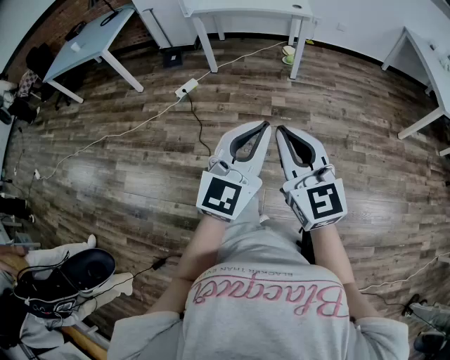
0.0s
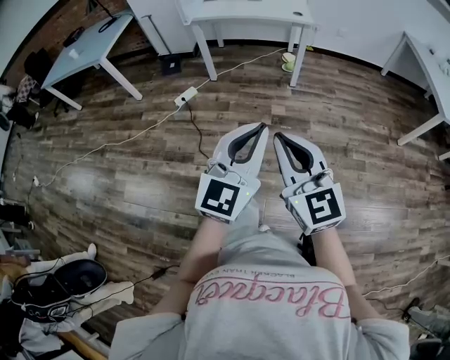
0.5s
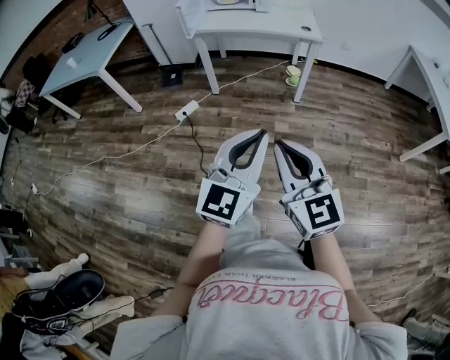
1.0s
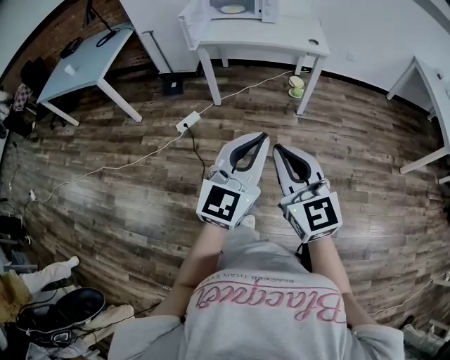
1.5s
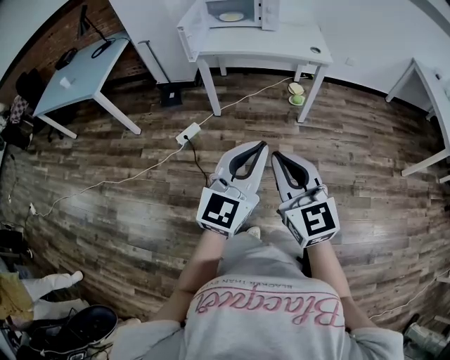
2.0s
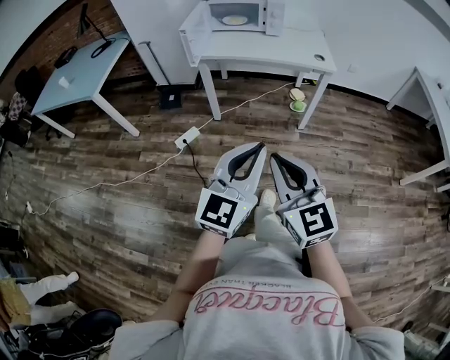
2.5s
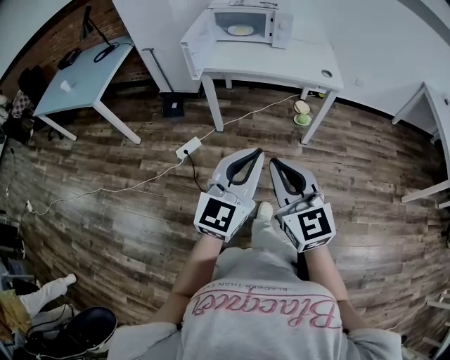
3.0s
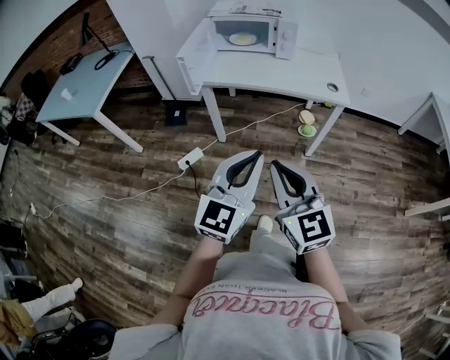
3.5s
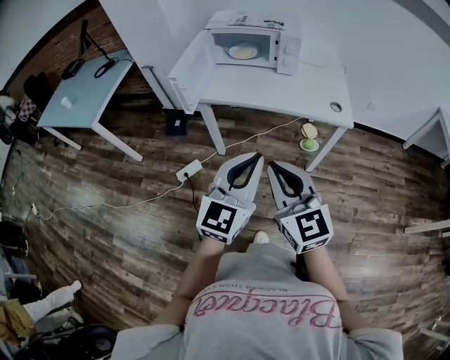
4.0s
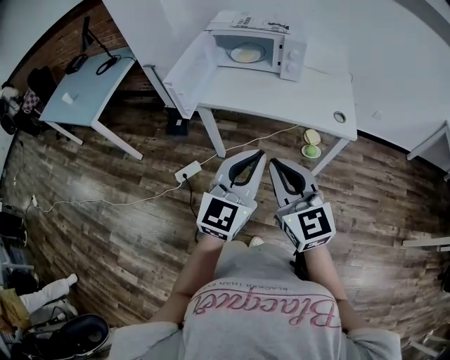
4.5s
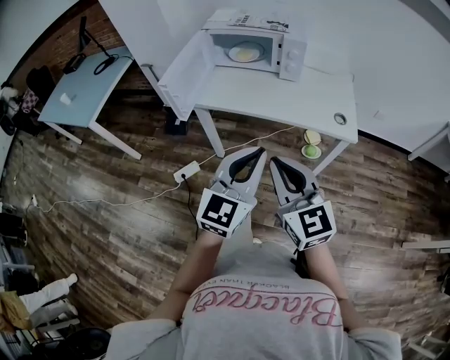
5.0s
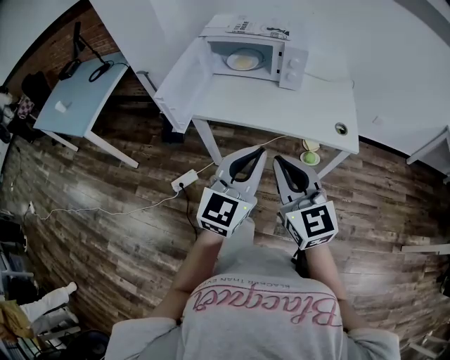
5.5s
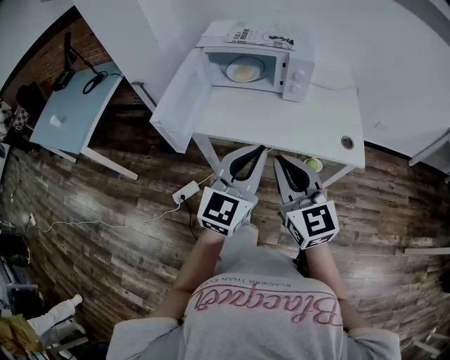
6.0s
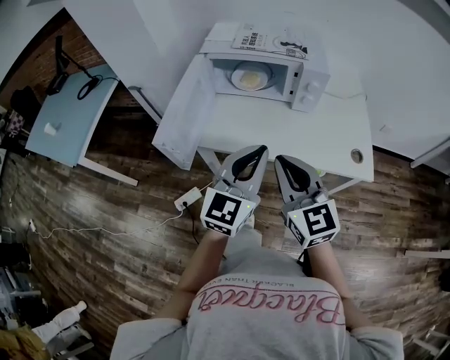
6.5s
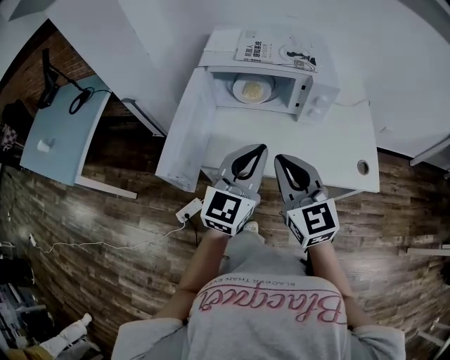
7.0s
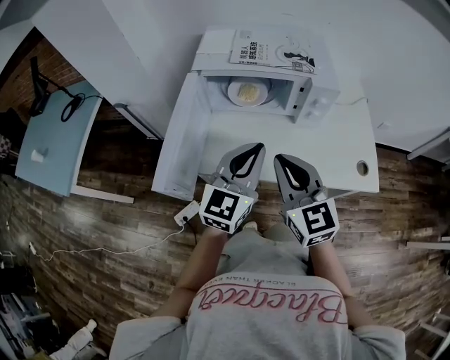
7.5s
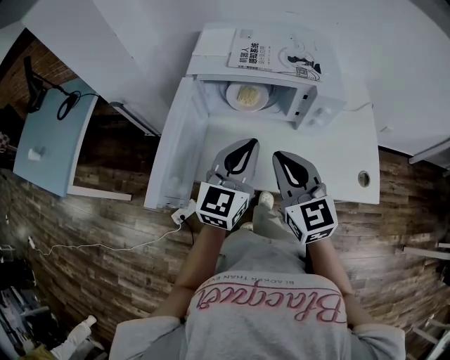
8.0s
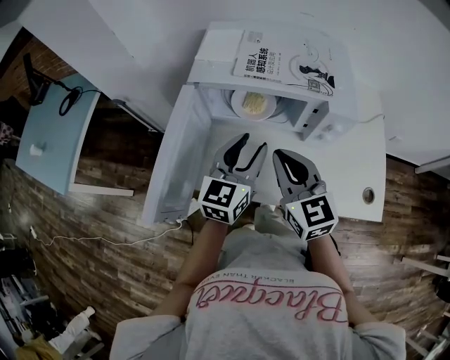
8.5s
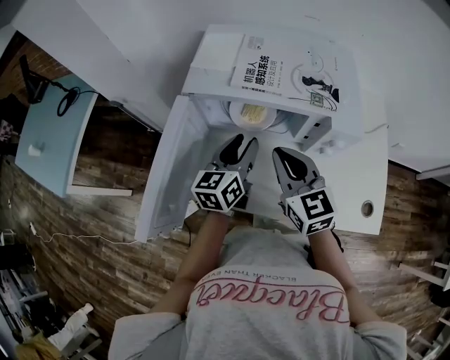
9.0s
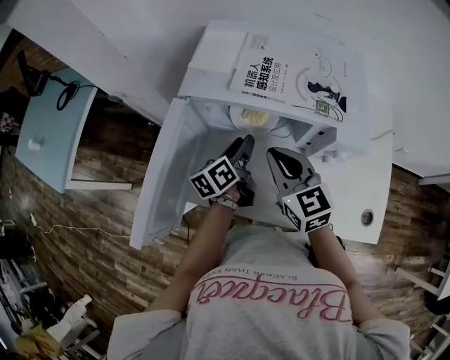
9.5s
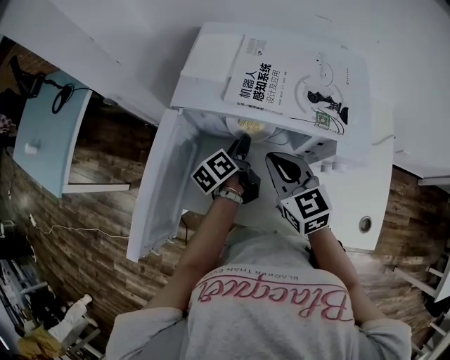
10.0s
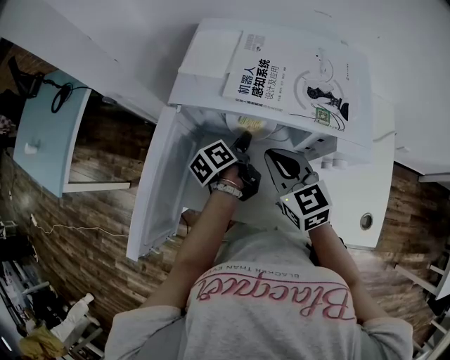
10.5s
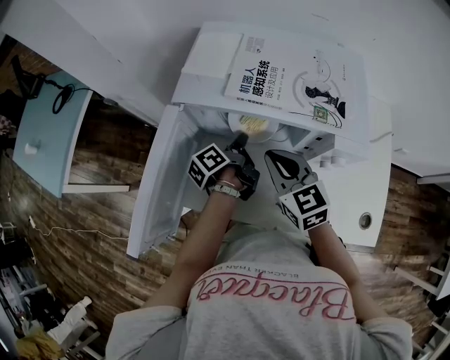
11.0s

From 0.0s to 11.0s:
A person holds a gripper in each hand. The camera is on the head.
From 0.0s to 2.0s: The two grippers go some 30 cm forward and to the left.
From 2.0s to 3.5s: The grippers both shift forward by about 20 cm.
From 3.5s to 5.5s: The two grippers go roughly 25 cm forward.
From 5.5s to 7.5s: The two grippers go about 25 cm forward.
From 7.5s to 9.0s: The left gripper is displaced forward and downward by some 20 cm, turns by approximately 30 degrees, and opens up. Meanwhile the right gripper shifts about 15 cm forward.
From 9.0s to 11.0s: The left gripper moves downward and forward, approximately 10 cm, rotates around the line of its fingers by about 60 degrees, counterclockwise from behind, and closes. The right gripper changes place by some 5 cm.

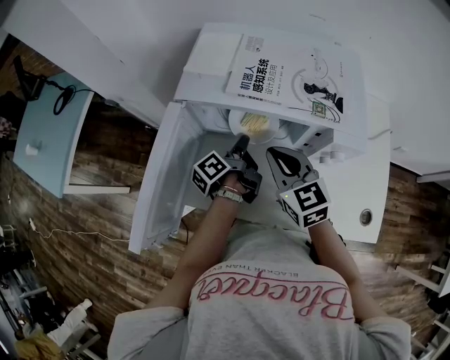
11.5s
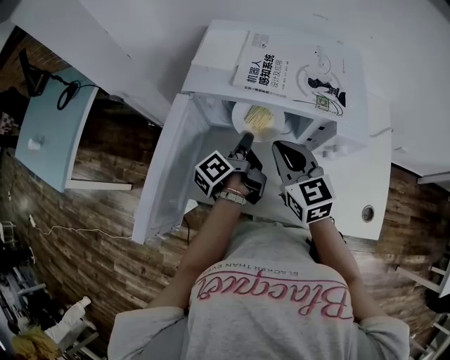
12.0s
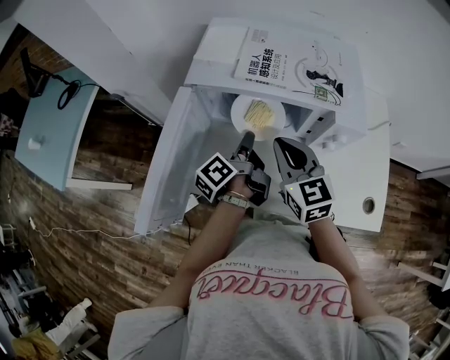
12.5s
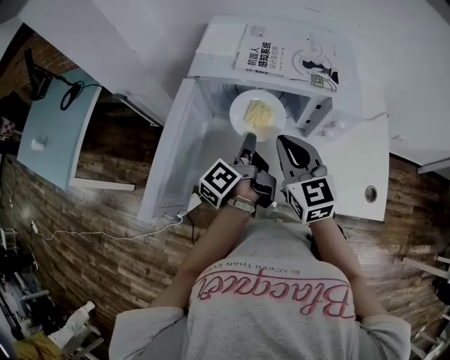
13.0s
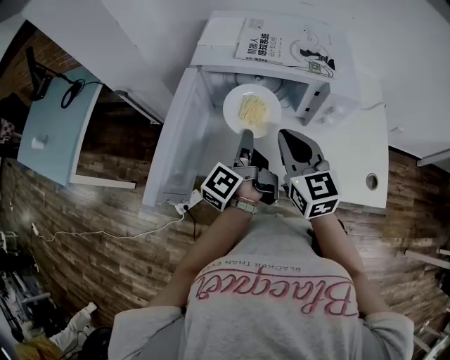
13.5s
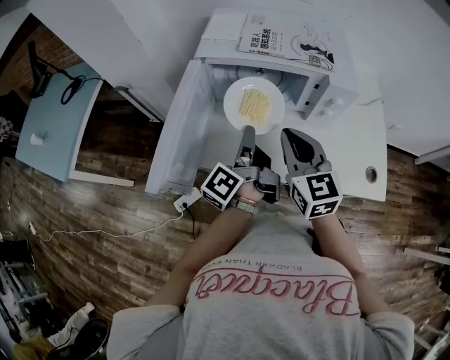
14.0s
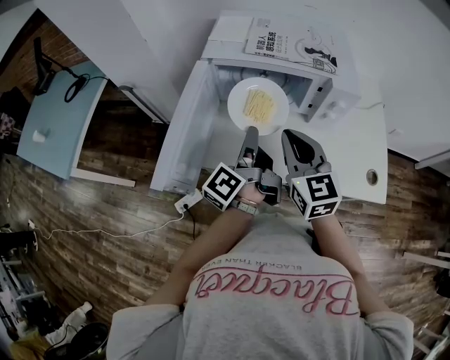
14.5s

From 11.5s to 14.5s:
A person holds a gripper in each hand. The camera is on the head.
From 11.5s to 13.0s: The right gripper moves backward, approximately 5 cm. Meanwhile the left gripper heads backward and upward, covering about 10 cm.
From 13.0s to 14.5s: Both grippers move backward, some 5 cm.

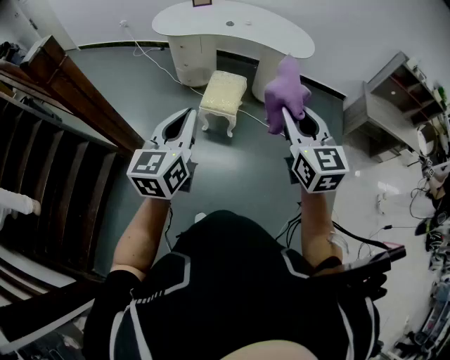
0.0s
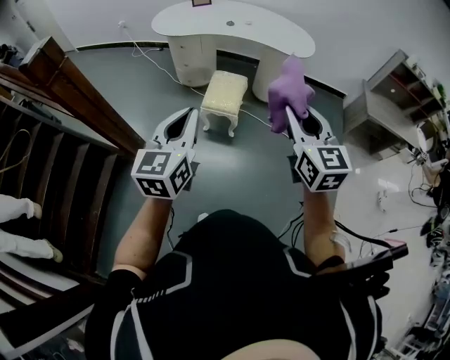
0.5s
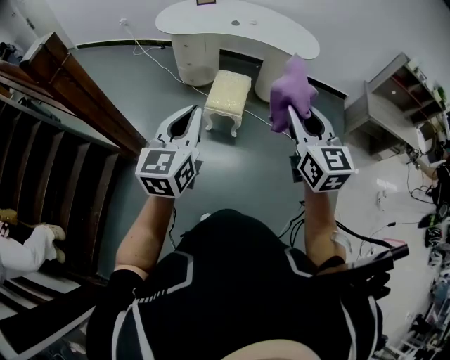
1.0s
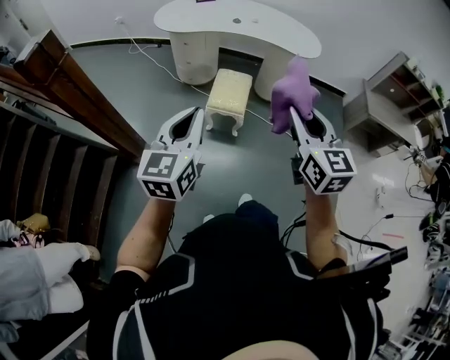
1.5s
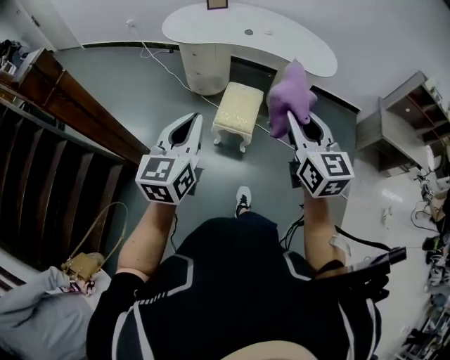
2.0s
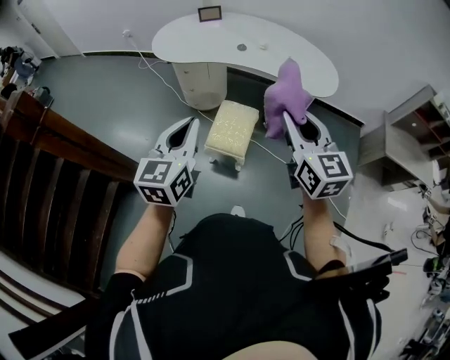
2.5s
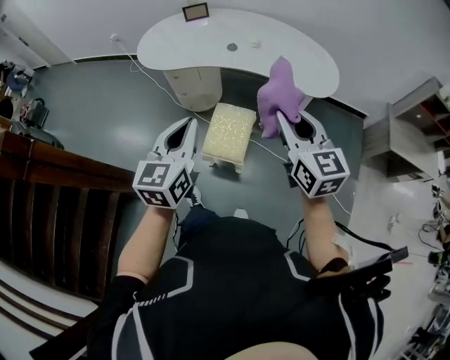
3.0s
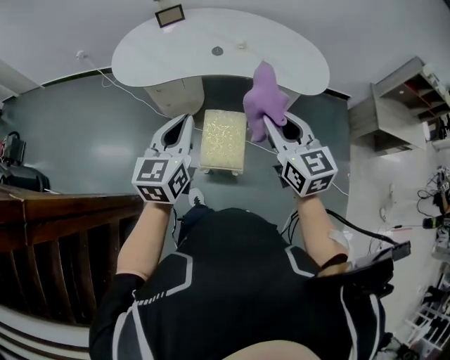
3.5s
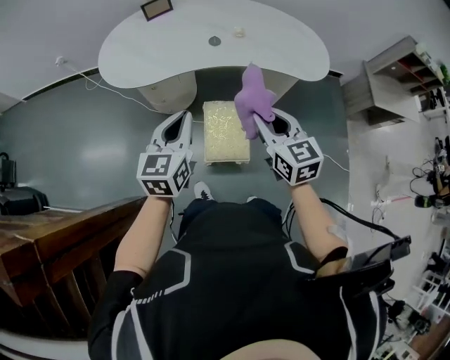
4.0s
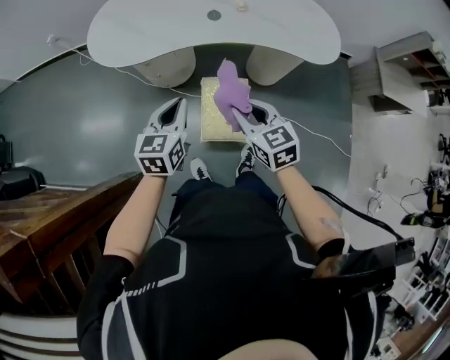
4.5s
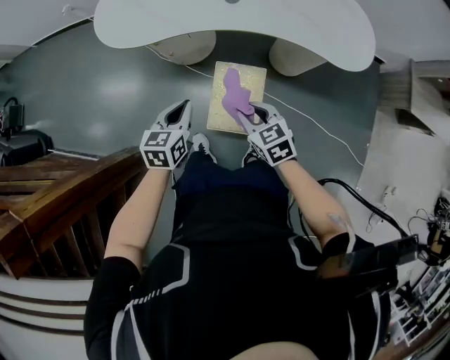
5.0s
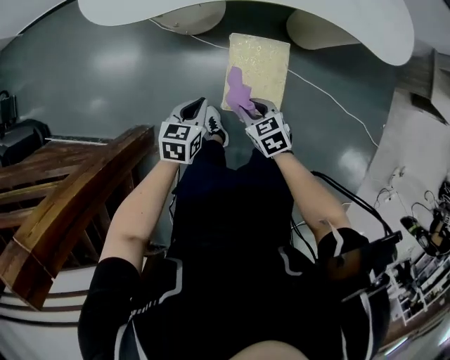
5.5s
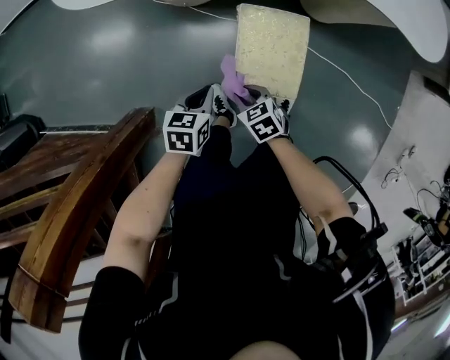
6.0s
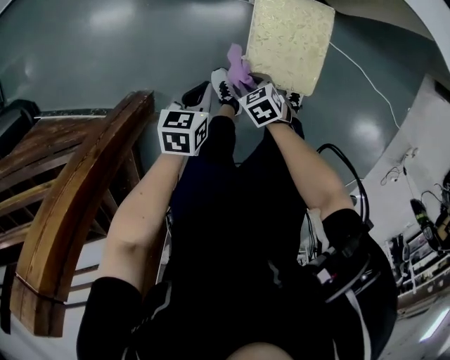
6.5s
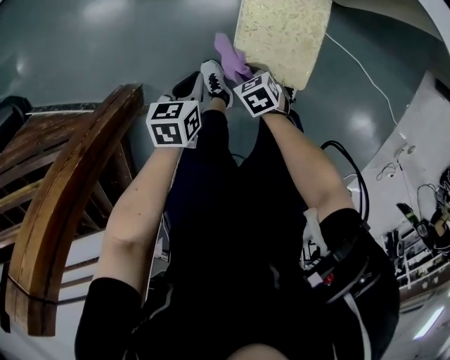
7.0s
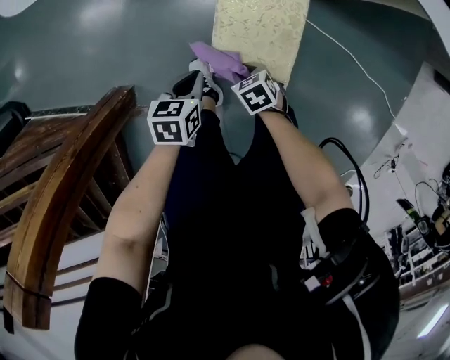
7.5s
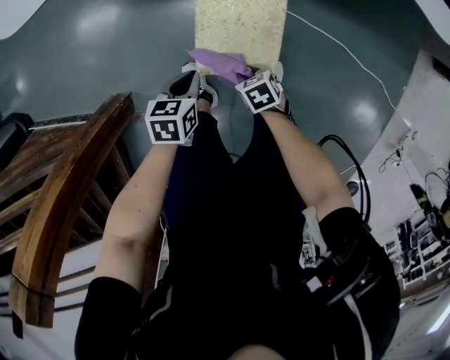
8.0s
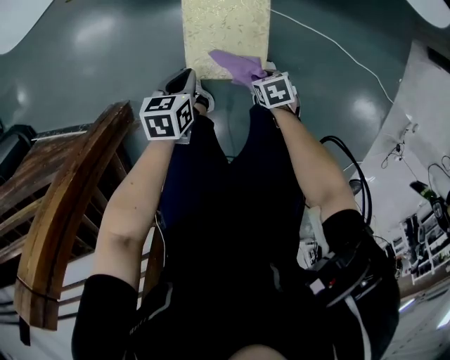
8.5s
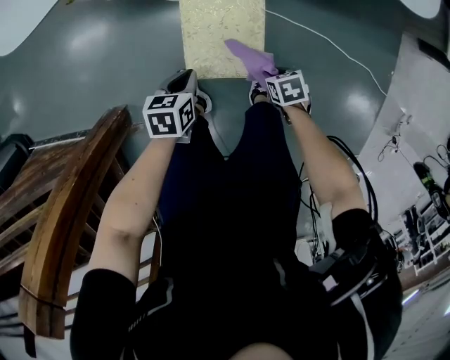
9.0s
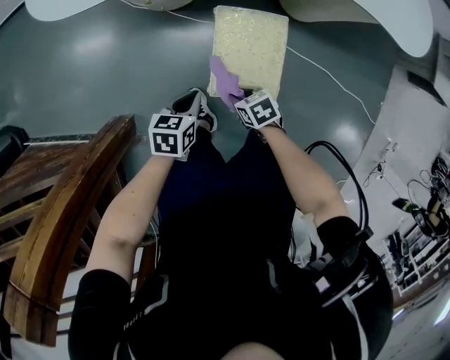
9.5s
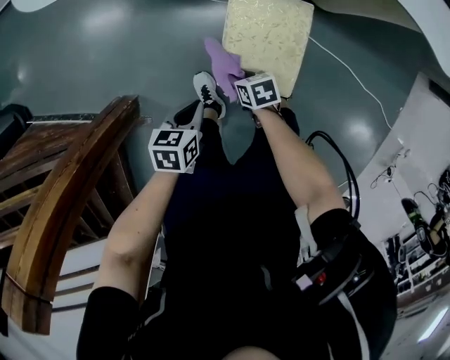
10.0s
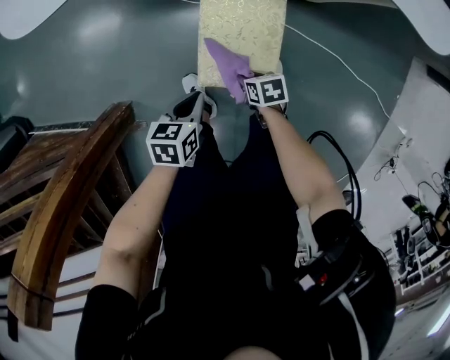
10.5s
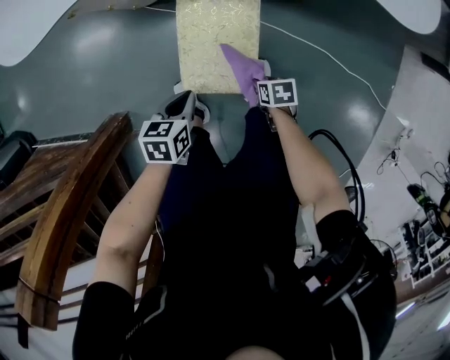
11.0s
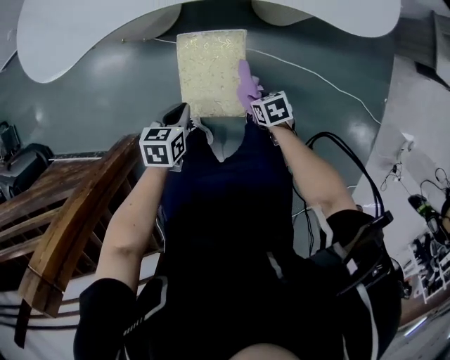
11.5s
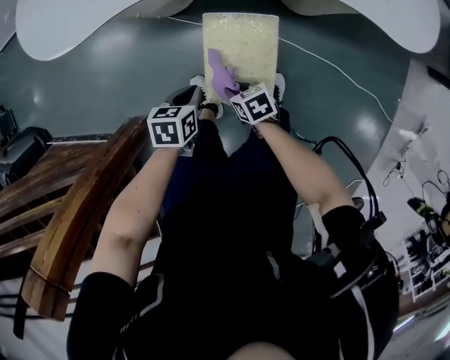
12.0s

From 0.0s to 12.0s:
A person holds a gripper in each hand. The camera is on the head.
From 0.0s to 2.0s: The two grippers go about 15 cm forward and to the left.
From 2.0s to 4.0s: The two grippers go approximately 40 cm forward.
From 4.0s to 6.0s: The right gripper goes some 50 cm downward and to the left, and angles its fingers downward, by about 40 degrees. Meanwhile the left gripper is displaced downward by approximately 40 cm, and tilts its fingers about 40 degrees downward.
From 6.0s to 8.0s: The right gripper travels downward, to the right and backward by approximately 15 cm. Meanwhile the left gripper moves downward and to the right, roughly 10 cm.
From 8.0s to 10.0s: The left gripper ends up roughly 10 cm from where it was. The right gripper goes upward and returns, roughly 10 cm each way.
From 10.0s to 12.0s: The right gripper is displaced upward by roughly 10 cm, and goes to the right and returns, about 25 cm each way. Meanwhile the left gripper shifts some 15 cm forward and to the right.
